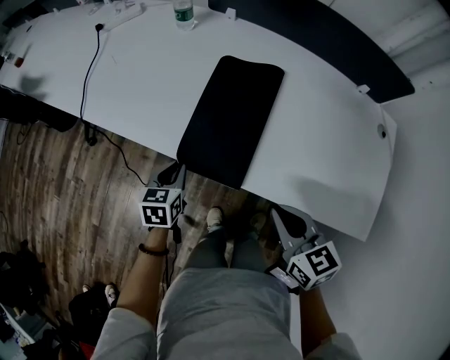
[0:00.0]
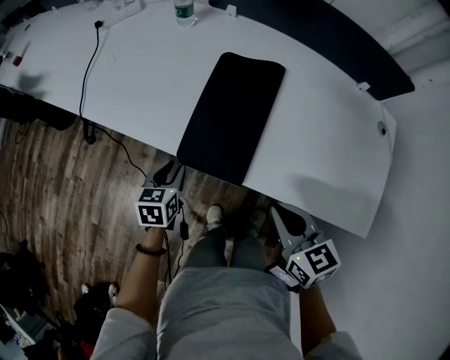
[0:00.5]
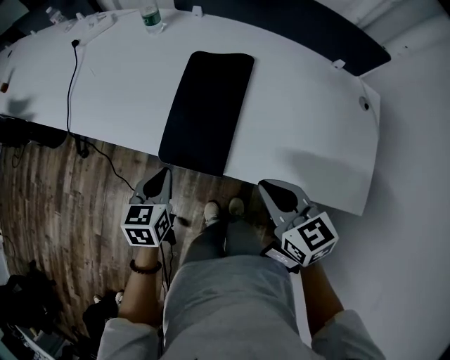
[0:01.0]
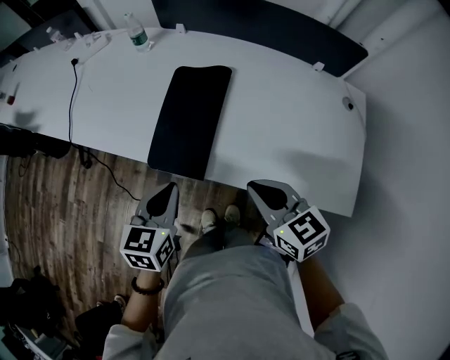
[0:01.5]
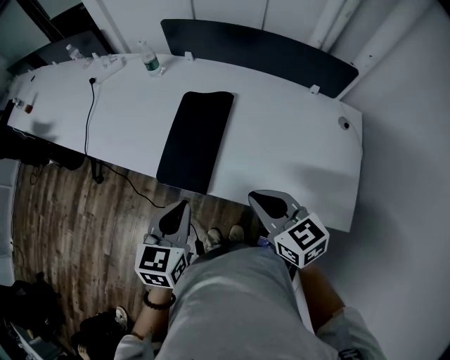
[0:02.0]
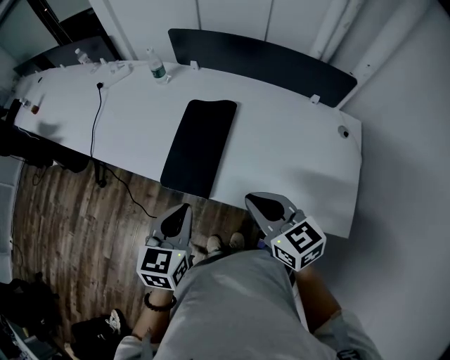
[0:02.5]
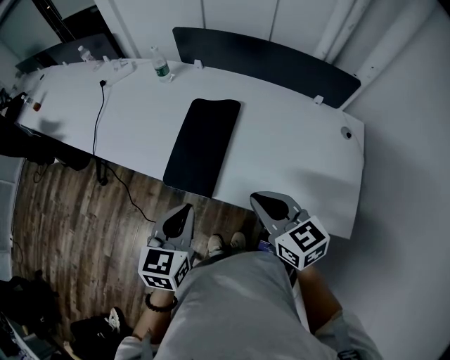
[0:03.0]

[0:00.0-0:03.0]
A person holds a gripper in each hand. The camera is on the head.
0:00.0 to 0:01.5: The right gripper moves upward, approximately 5 cm. Meanwhile the left gripper moves upward, to the right and backward, roughly 20 cm.
0:01.5 to 0:03.0: Both grippers travel together upward, about 5 cm.

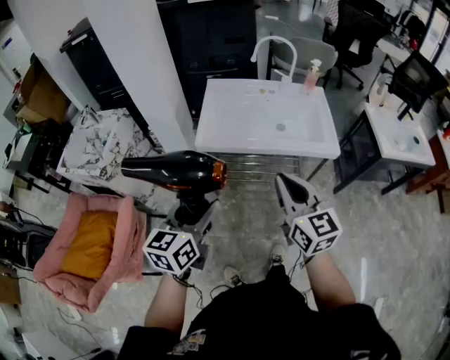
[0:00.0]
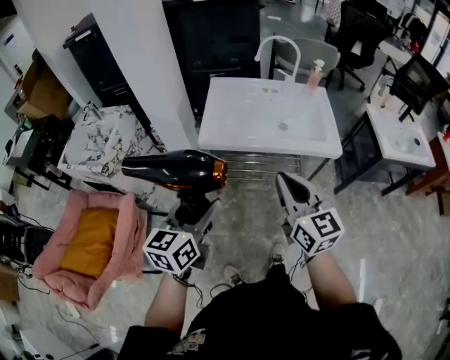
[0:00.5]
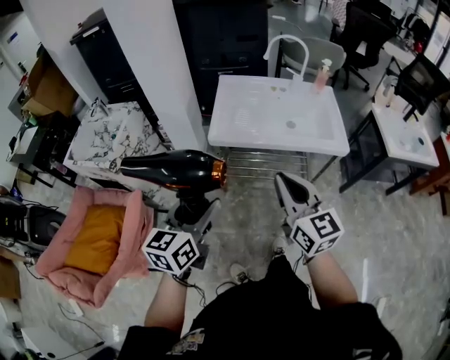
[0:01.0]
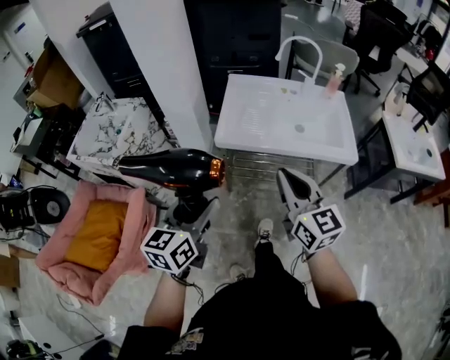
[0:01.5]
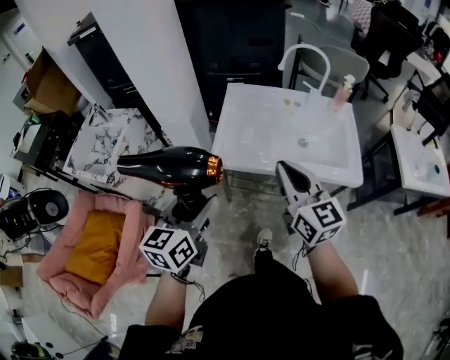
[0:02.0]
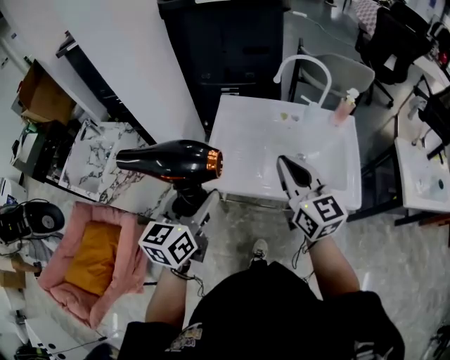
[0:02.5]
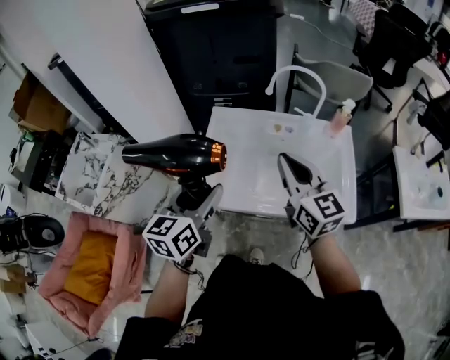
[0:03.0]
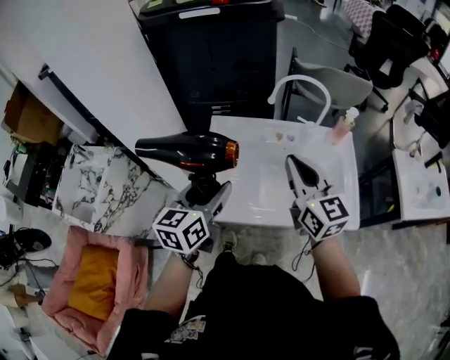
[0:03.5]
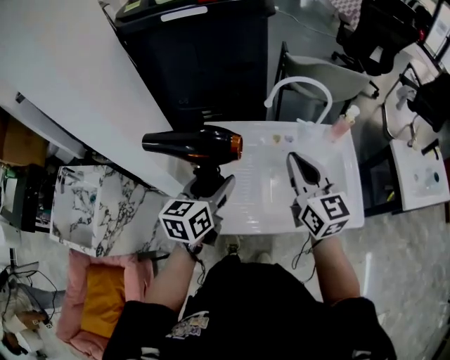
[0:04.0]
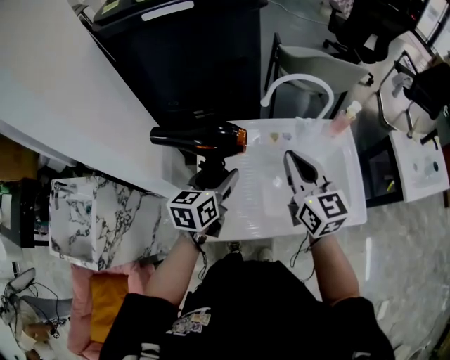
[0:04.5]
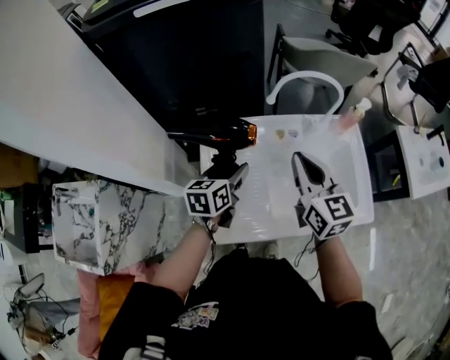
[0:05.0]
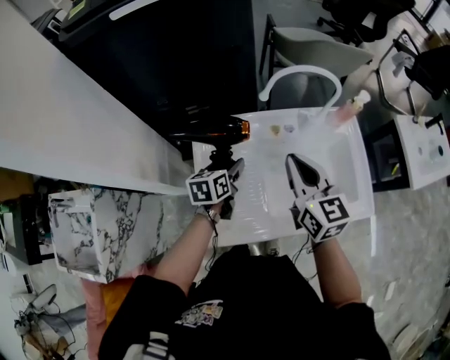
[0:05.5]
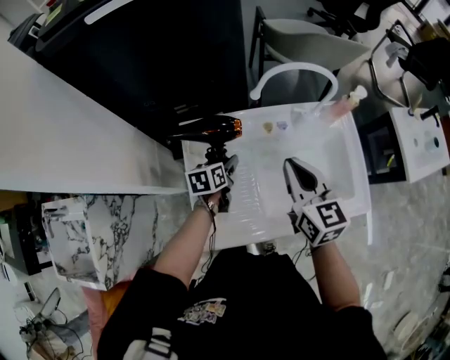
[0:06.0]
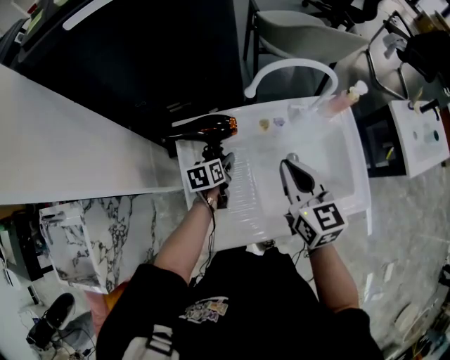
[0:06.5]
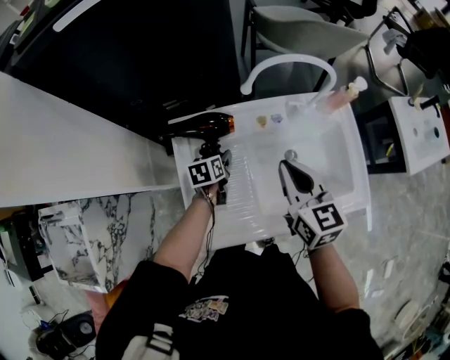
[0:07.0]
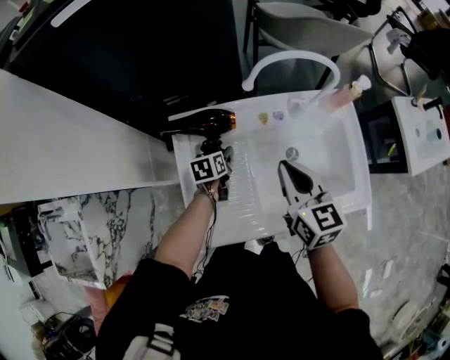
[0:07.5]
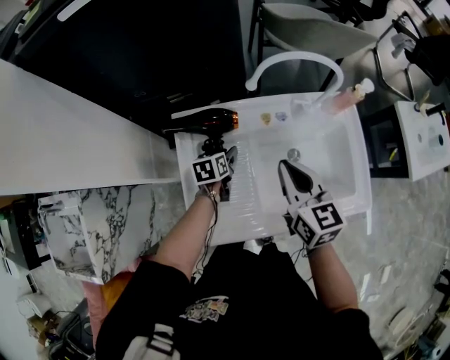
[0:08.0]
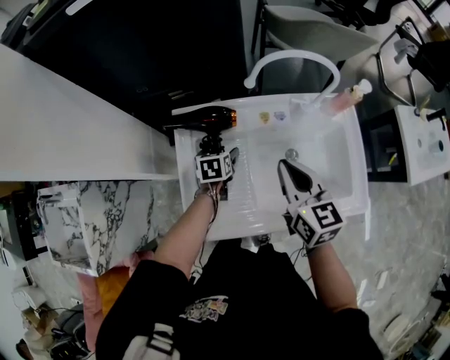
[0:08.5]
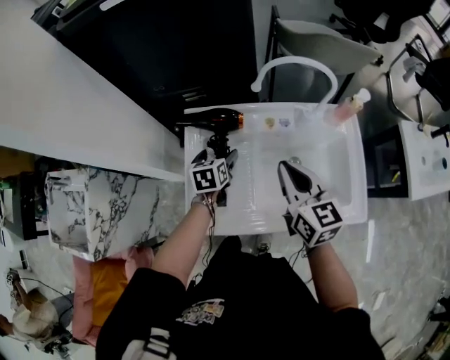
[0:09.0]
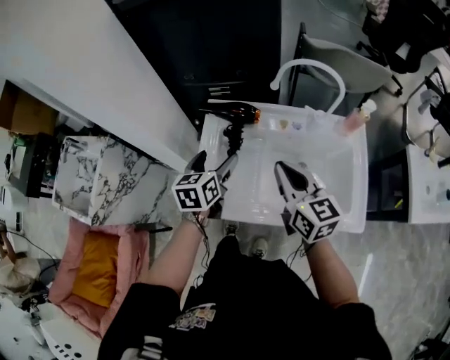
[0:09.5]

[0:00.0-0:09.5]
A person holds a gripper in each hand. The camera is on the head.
0:00.0 to 0:02.0: The two grippers go some 15 cm forward.
0:02.0 to 0:04.0: The two grippers go approximately 35 cm forward.
0:04.0 to 0:05.5: The left gripper shifts some 25 cm downward and forward, and rotates roughly 20 degrees, while the right gripper travels downward and forward by some 10 cm.
0:05.5 to 0:07.5: The left gripper goes roughly 15 cm downward; the right gripper travels downward by some 5 cm.
0:07.5 to 0:09.5: The left gripper goes approximately 25 cm upward and backward, and swivels roughly 30 degrees; the right gripper moves backward, roughly 10 cm, and swivels some 20 degrees.

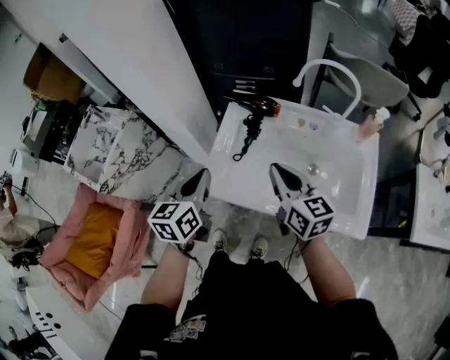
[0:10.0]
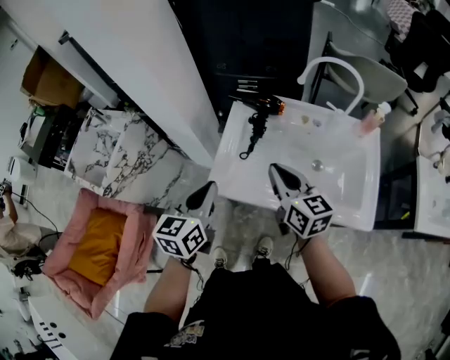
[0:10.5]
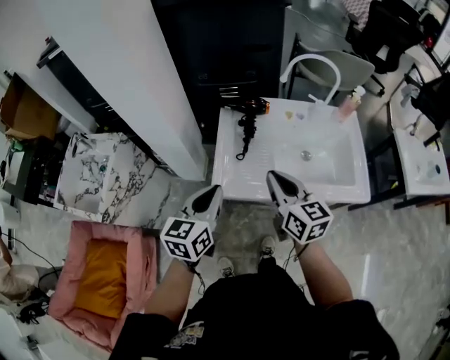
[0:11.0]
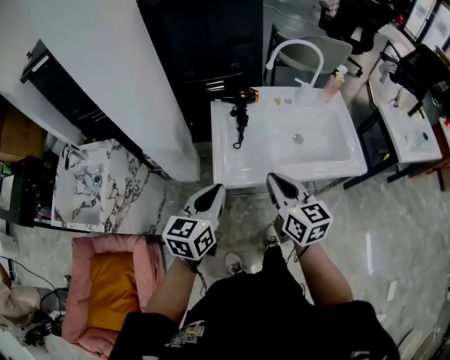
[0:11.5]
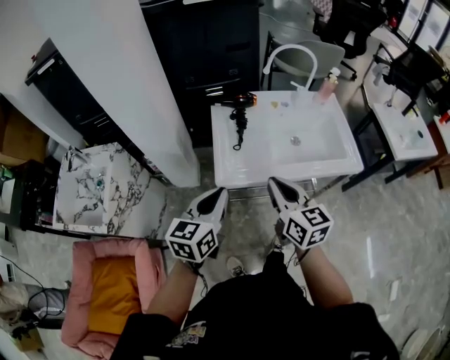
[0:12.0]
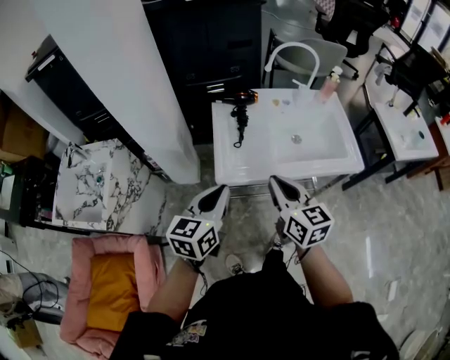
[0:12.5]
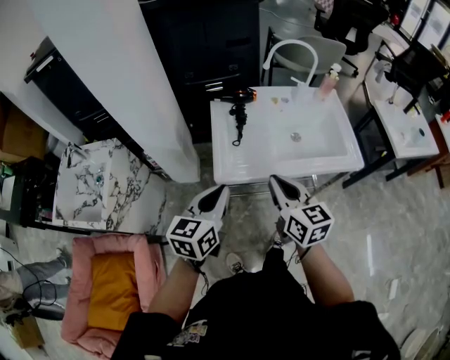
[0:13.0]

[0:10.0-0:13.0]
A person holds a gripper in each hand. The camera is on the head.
0:10.0 to 0:11.5: Both grippers travel together backward and to the left, roughly 15 cm. The left gripper swivels some 30 degrees. The right gripper swivels roughly 20 degrees.
0:11.5 to 0:13.0: The grippers move only a little.

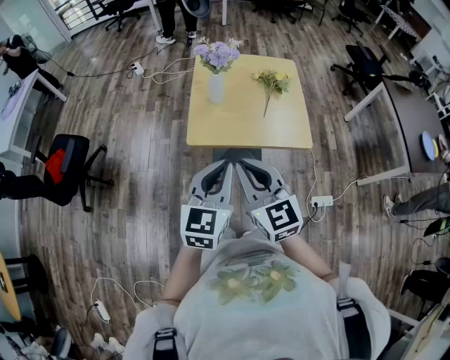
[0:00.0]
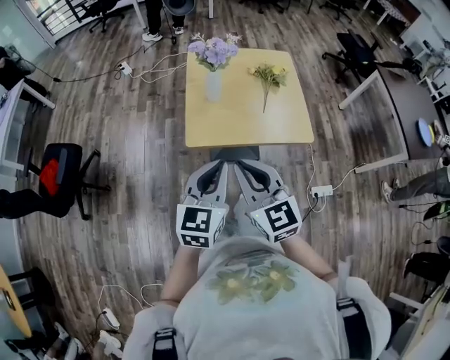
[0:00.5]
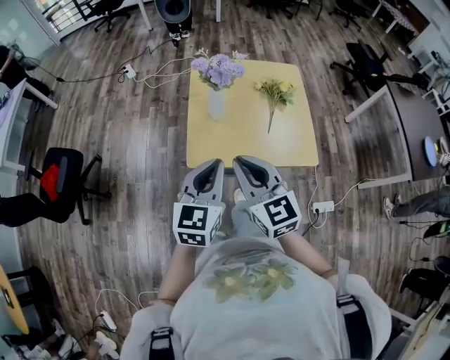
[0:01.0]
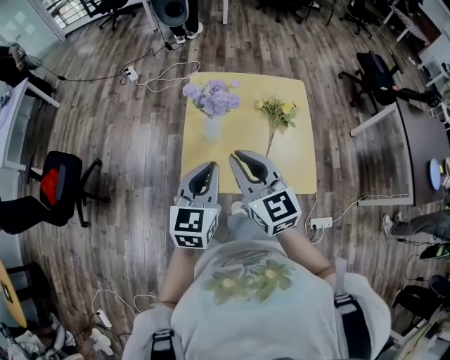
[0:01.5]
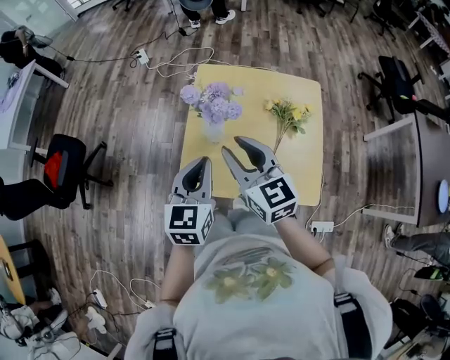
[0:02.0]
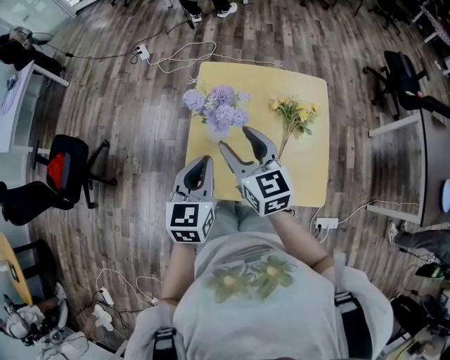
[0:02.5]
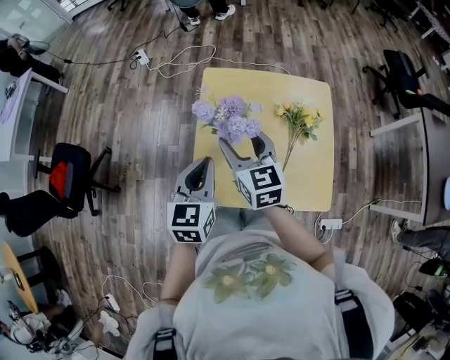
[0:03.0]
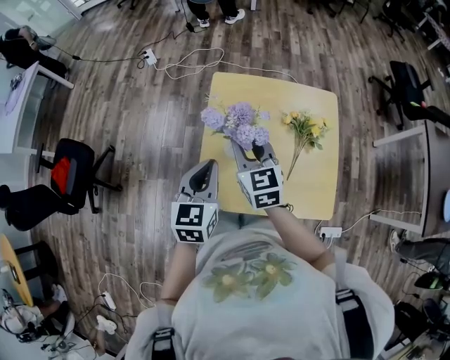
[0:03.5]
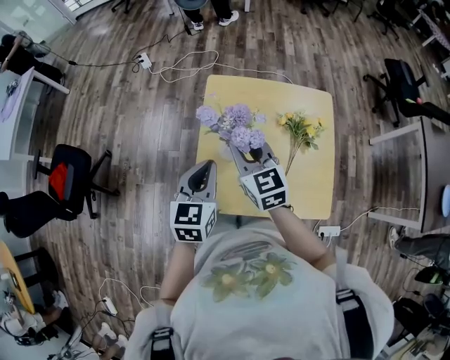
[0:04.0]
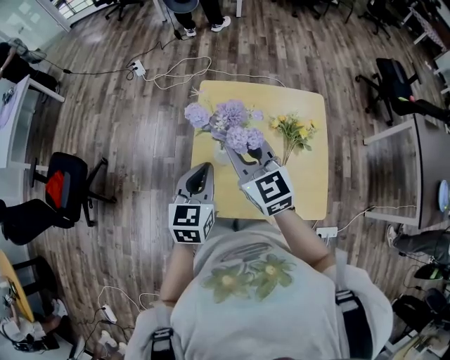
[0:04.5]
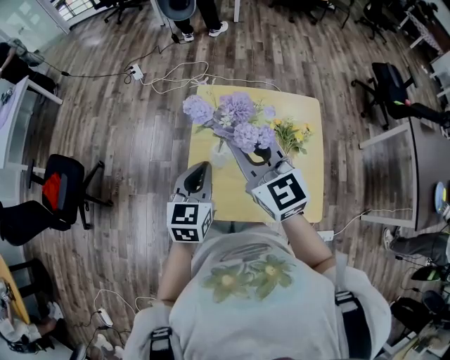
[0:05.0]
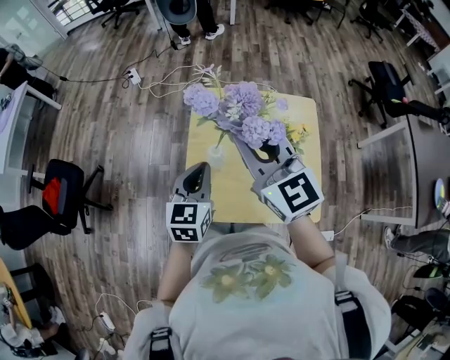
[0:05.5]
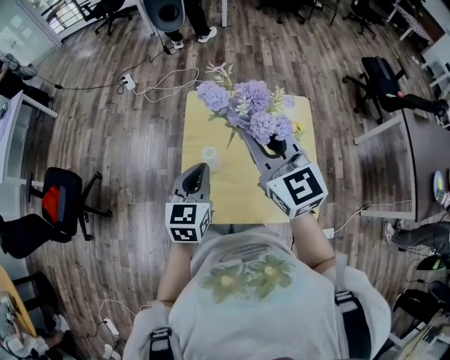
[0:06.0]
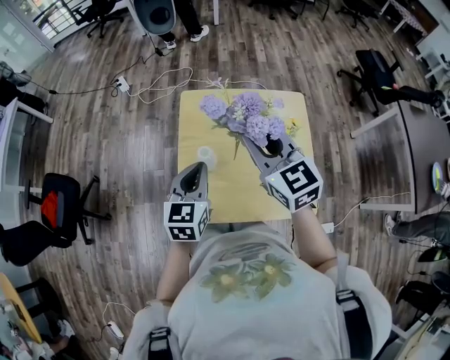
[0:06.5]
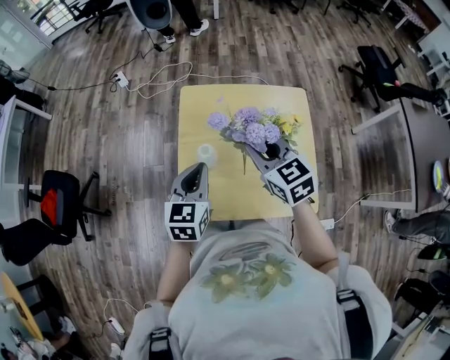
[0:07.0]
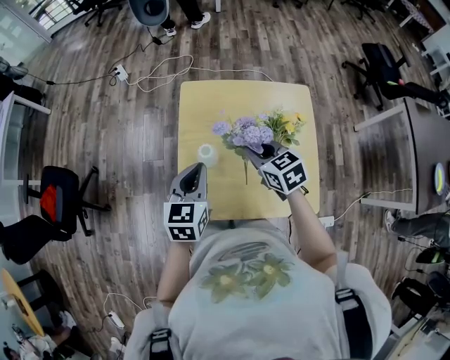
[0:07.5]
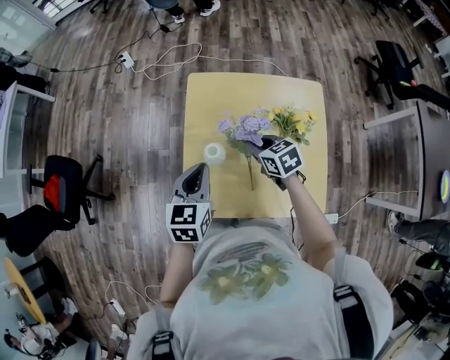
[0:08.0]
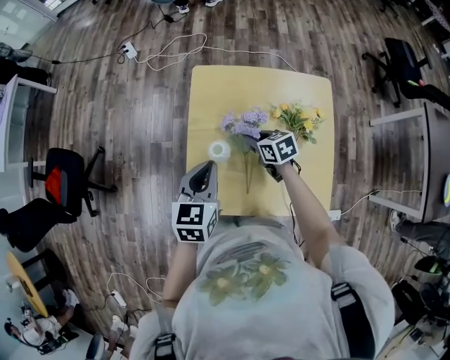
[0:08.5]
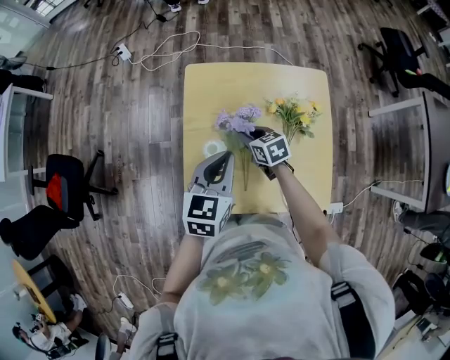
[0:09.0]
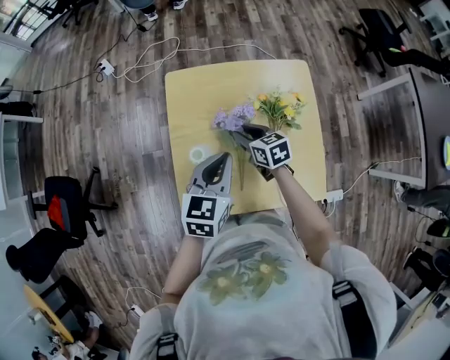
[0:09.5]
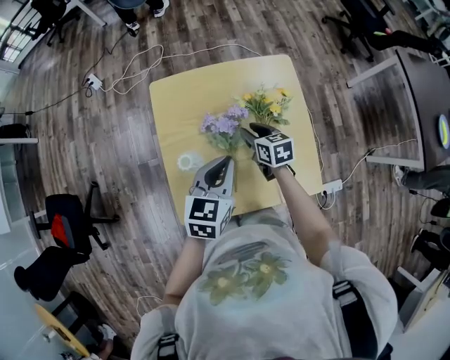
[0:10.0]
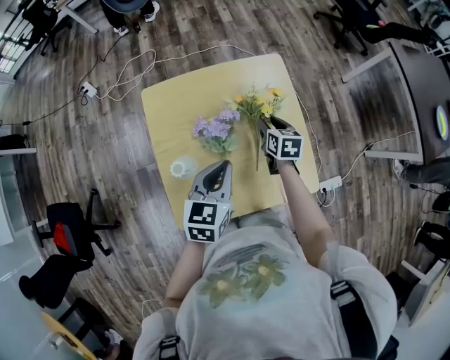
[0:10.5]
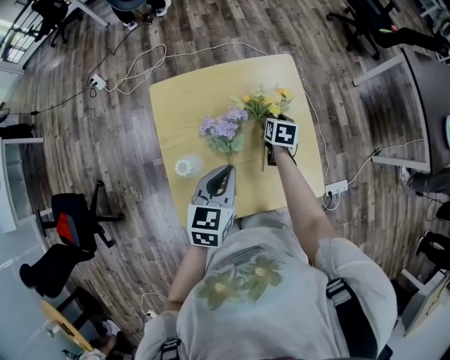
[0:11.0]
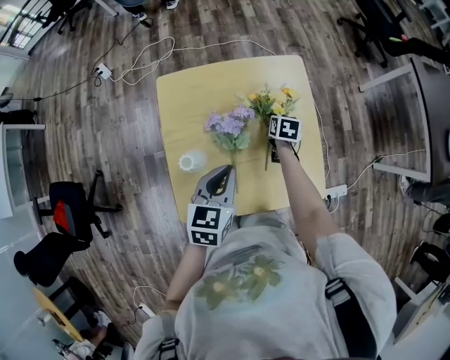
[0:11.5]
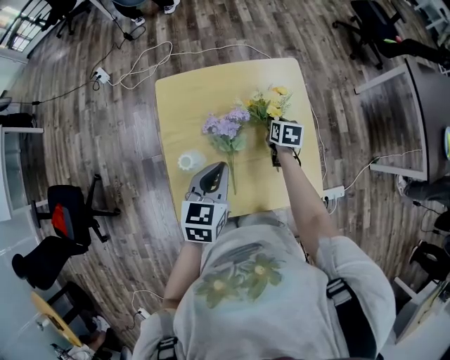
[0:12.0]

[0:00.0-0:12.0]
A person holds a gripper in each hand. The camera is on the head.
0:00.0 to 0:02.0: Both grippers move forward, some 40 cm.
0:02.0 to 0:04.0: Both grippers move forward, about 10 cm. The right gripper opens, then closes again.
0:04.0 to 0:06.0: The right gripper heads upward and to the right, covering some 20 cm.
0:06.0 to 0:08.0: The right gripper goes roughly 30 cm downward, and tips its fingers downward by about 40 degrees. The left gripper travels downward by roughly 5 cm.
0:08.0 to 0:10.0: The right gripper moves approximately 15 cm, and swivels some 30 degrees, while the left gripper shifts by approximately 15 cm, and changes its angle by some 20 degrees.
0:10.0 to 0:12.0: The right gripper travels to the right, forward and downward by roughly 15 cm, swivels roughly 20 degrees, and opens, then closes again.
